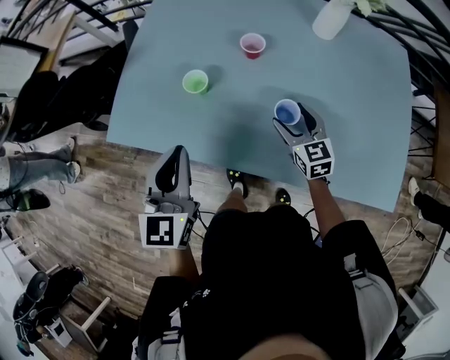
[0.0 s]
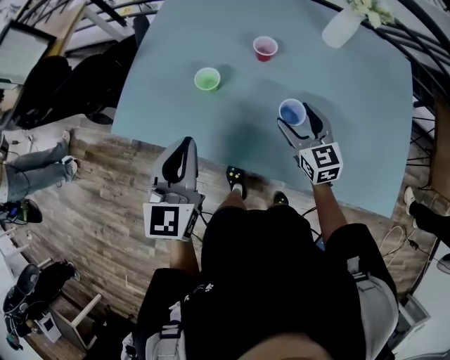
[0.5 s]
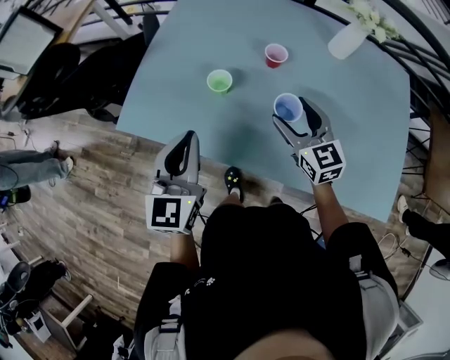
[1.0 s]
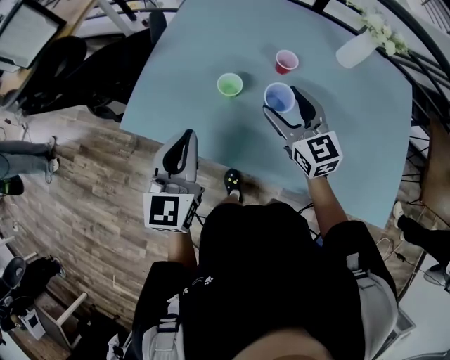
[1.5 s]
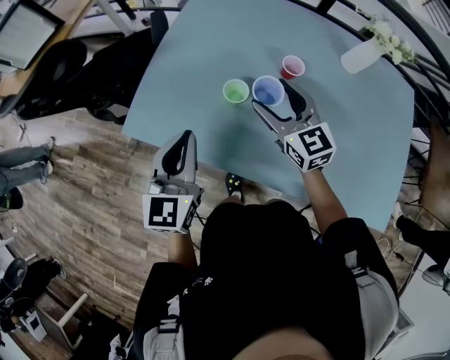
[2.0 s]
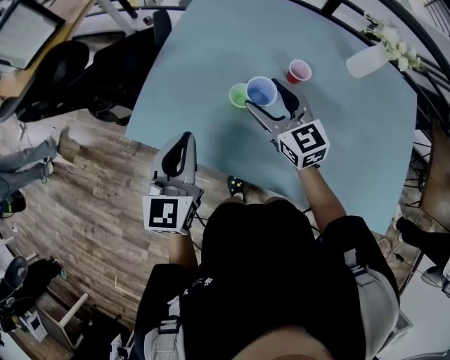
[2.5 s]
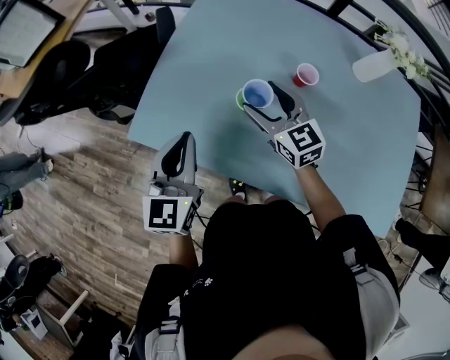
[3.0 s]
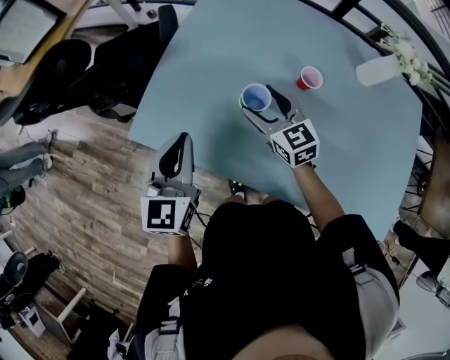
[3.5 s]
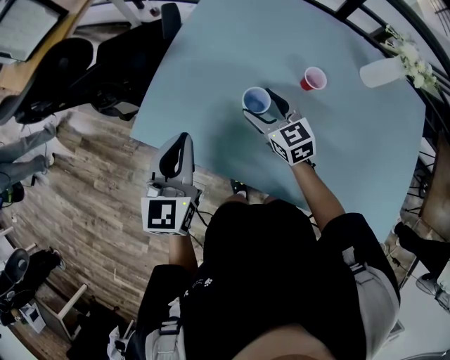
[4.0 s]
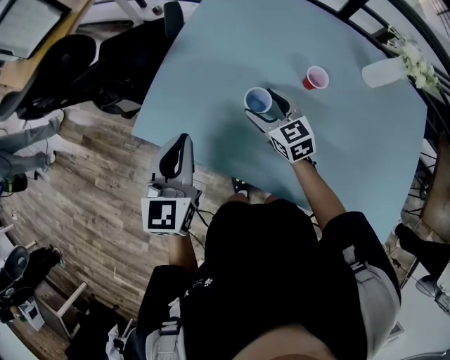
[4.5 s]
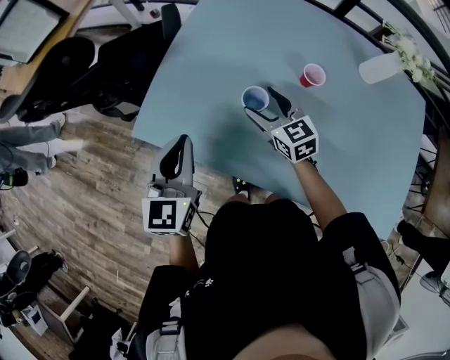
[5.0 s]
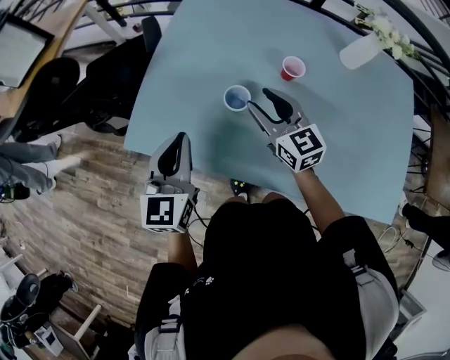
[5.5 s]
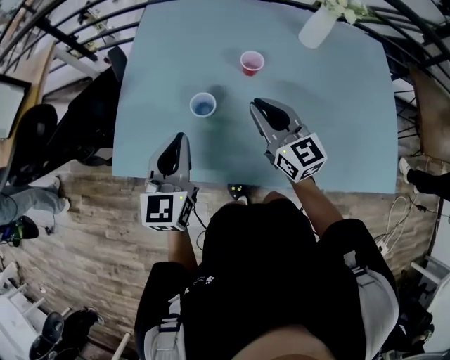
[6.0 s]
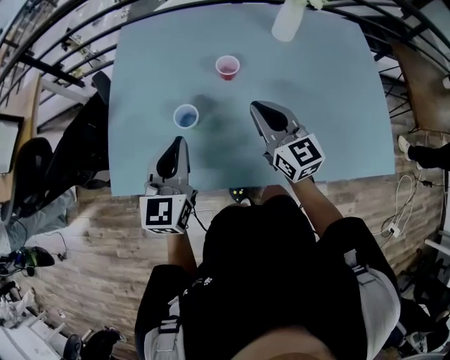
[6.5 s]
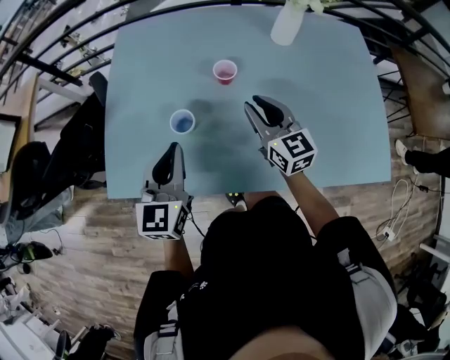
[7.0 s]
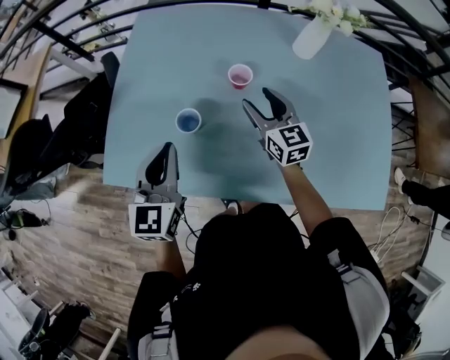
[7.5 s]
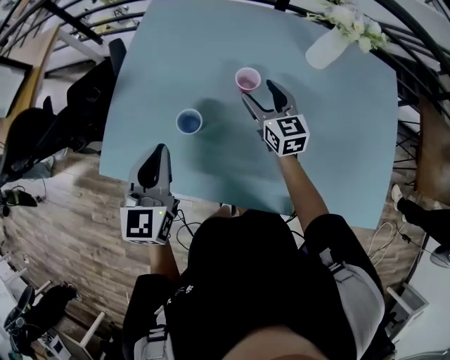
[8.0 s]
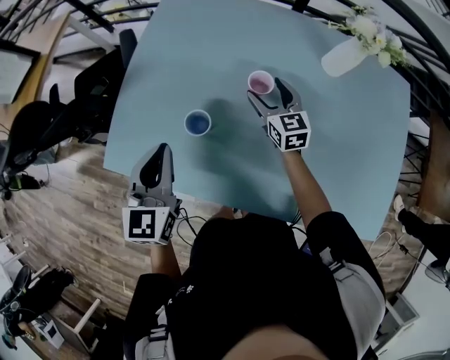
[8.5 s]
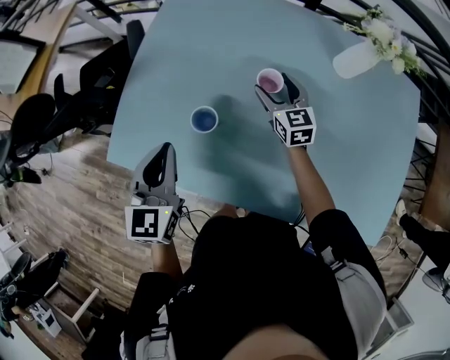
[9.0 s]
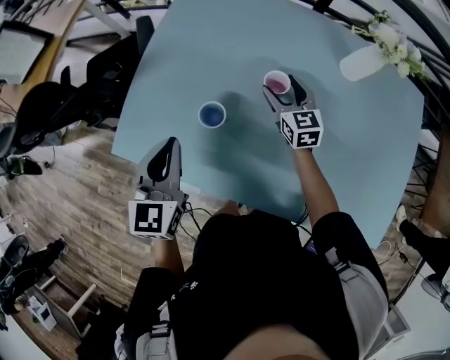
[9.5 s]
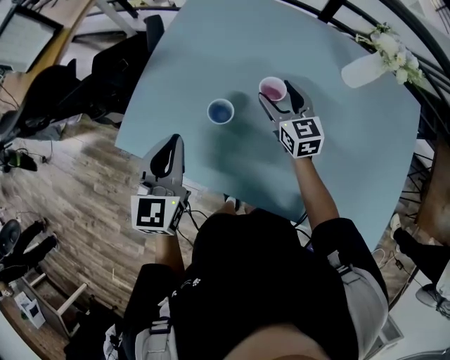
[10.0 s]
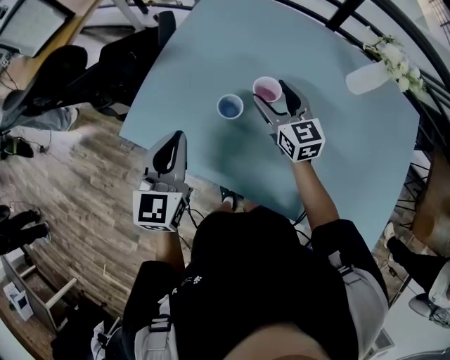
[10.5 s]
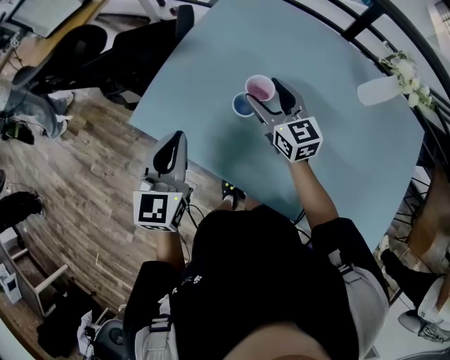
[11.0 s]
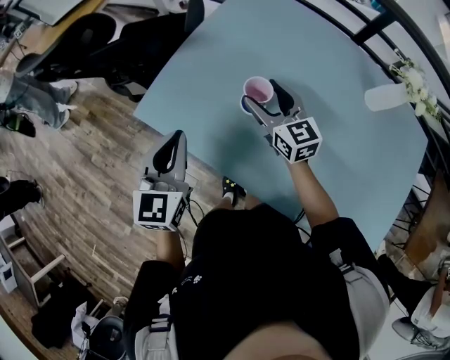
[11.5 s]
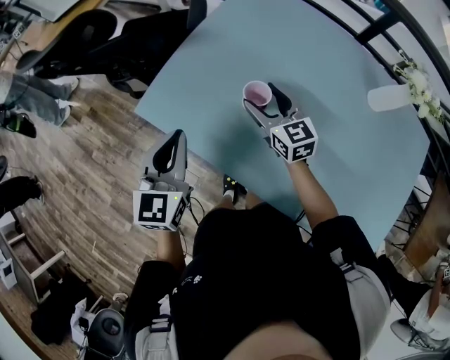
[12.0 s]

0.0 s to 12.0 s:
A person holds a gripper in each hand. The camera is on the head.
0.0 to 2.0 s: The right gripper shifts some 25 cm to the left, upward and forward; the left gripper goes some 10 cm to the left and forward.
2.0 to 4.0 s: The right gripper goes approximately 15 cm downward, to the left and forward; the left gripper goes some 5 cm forward.
4.0 to 6.0 s: The left gripper shifts roughly 10 cm to the right. The right gripper moves to the right, upward and backward, roughly 20 cm, rotates about 30 degrees, and closes up.
6.0 to 8.0 s: The right gripper goes about 15 cm forward, downward and to the right, and opens its fingers.
8.0 to 10.0 s: The right gripper is displaced to the left by approximately 5 cm.
10.0 to 12.0 s: The left gripper travels to the left by about 10 cm. The right gripper heads to the left, covering roughly 15 cm.

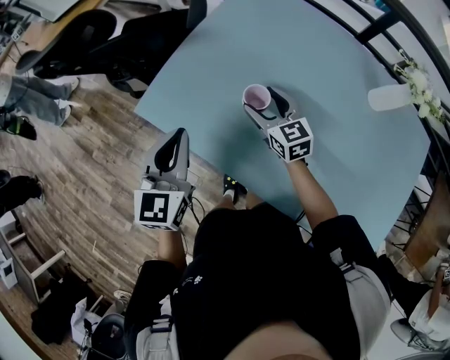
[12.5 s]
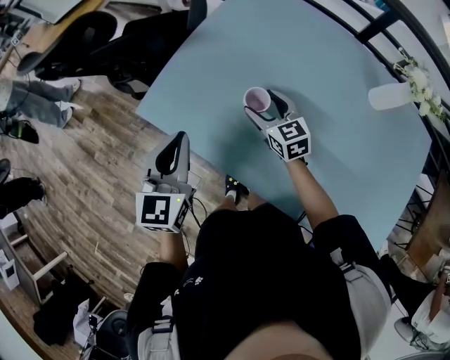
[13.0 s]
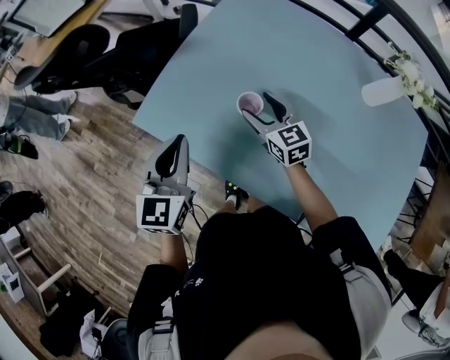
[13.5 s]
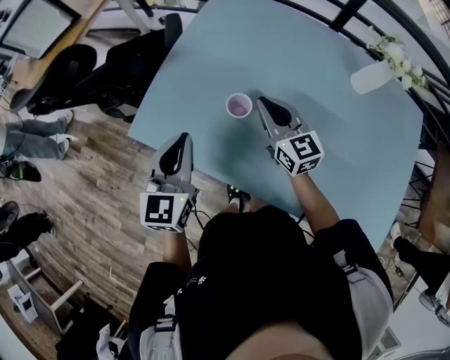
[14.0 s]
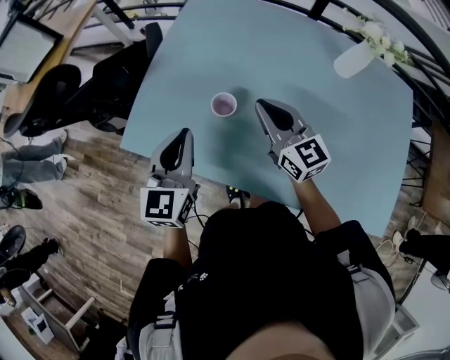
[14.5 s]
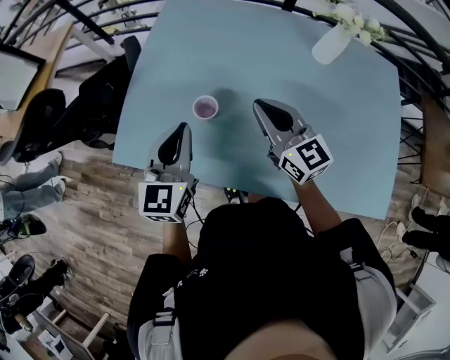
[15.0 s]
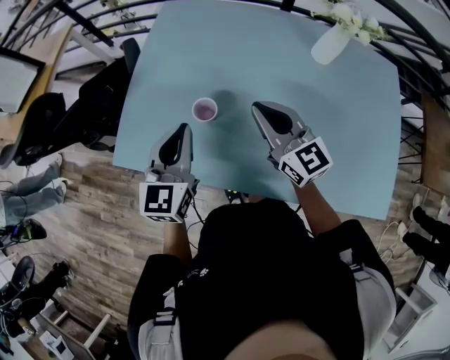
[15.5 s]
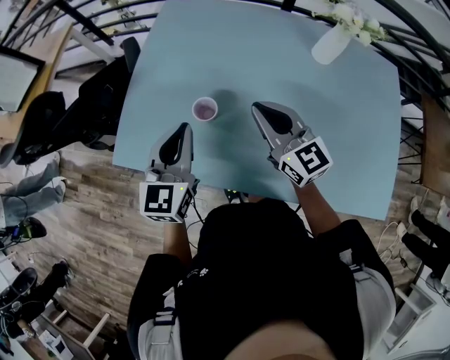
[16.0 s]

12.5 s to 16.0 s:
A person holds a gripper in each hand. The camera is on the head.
12.5 to 14.5 s: The right gripper shifts approximately 15 cm upward, to the right and backward, rotates roughly 20 degrees, and closes up, while the left gripper moves to the right, approximately 10 cm.
14.5 to 16.0 s: The right gripper moves roughly 5 cm. The left gripper moves to the right, about 5 cm.

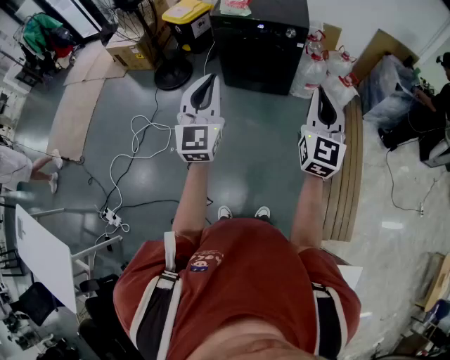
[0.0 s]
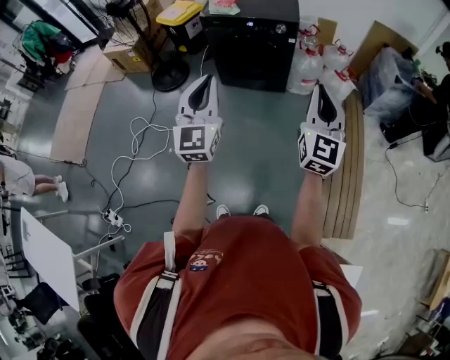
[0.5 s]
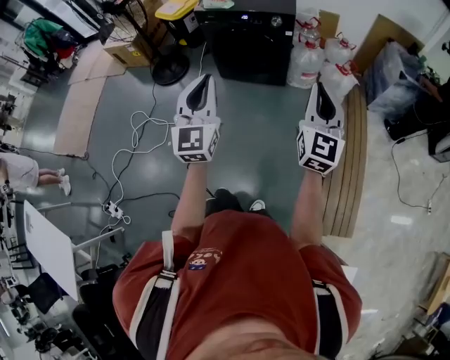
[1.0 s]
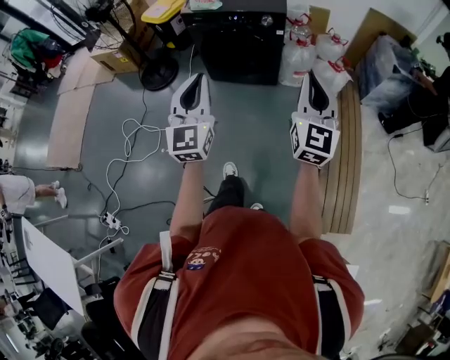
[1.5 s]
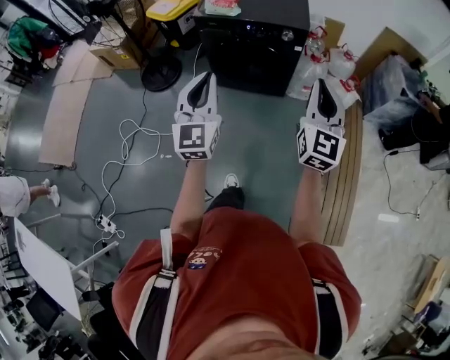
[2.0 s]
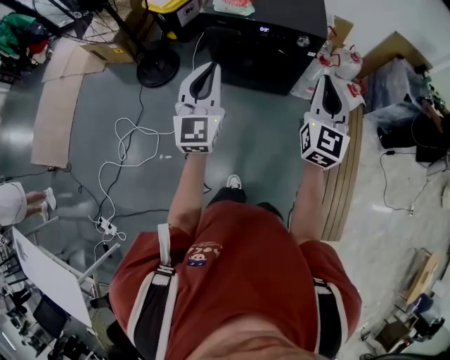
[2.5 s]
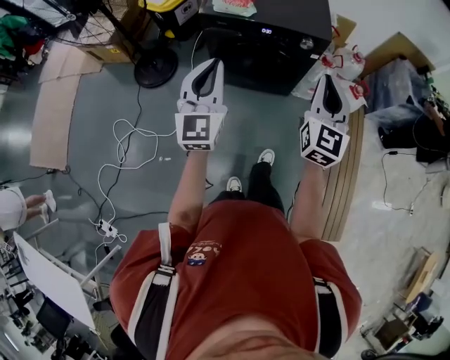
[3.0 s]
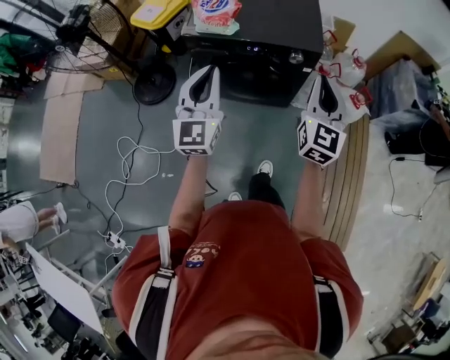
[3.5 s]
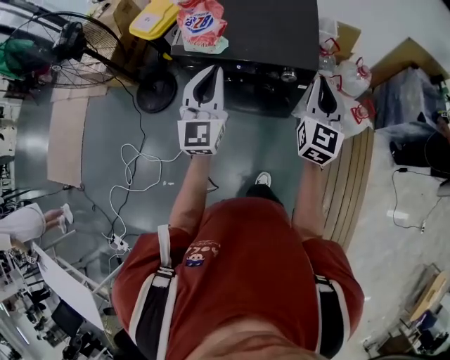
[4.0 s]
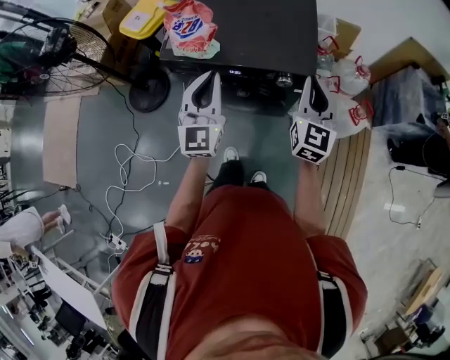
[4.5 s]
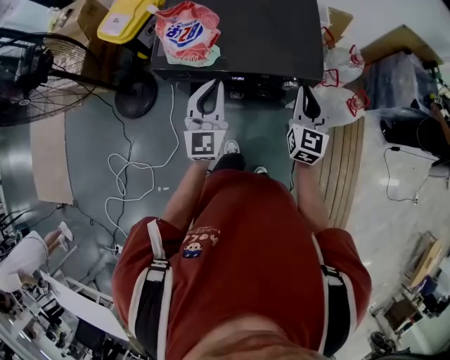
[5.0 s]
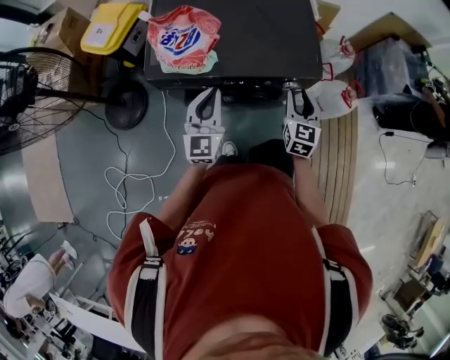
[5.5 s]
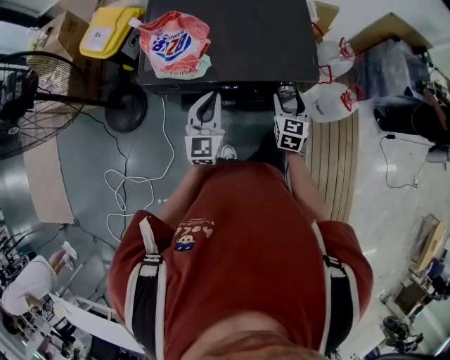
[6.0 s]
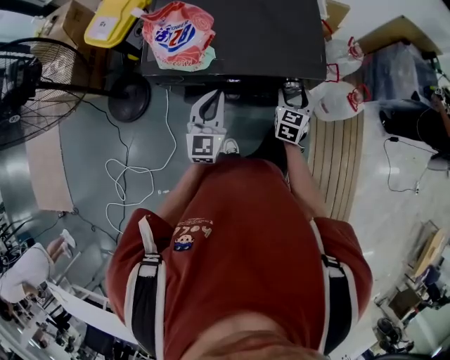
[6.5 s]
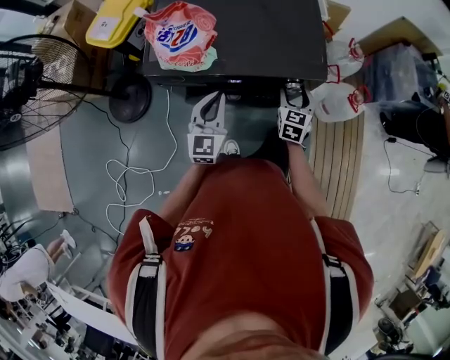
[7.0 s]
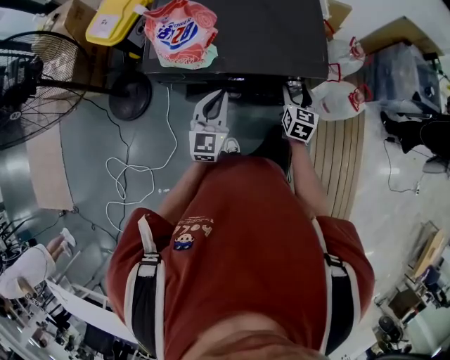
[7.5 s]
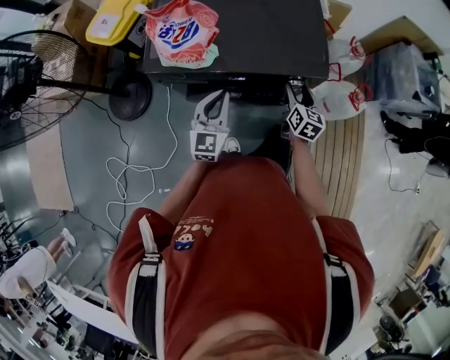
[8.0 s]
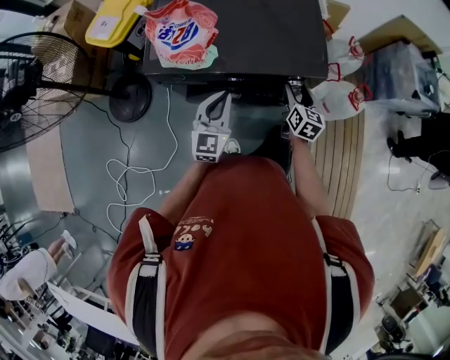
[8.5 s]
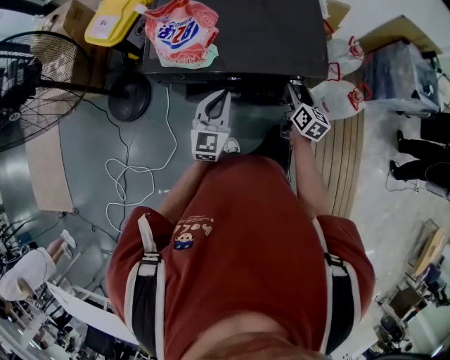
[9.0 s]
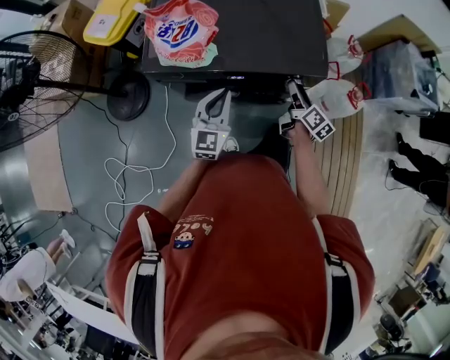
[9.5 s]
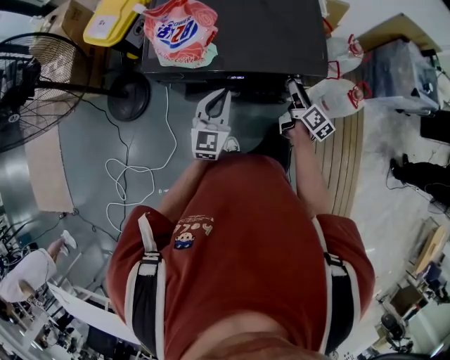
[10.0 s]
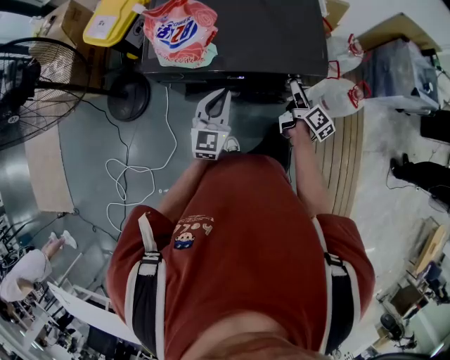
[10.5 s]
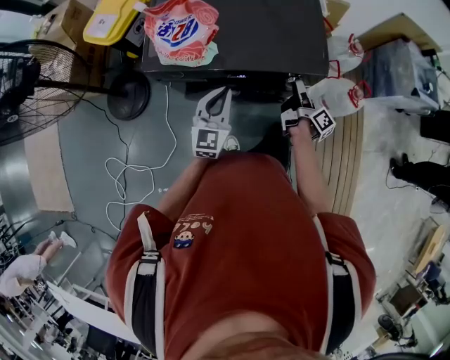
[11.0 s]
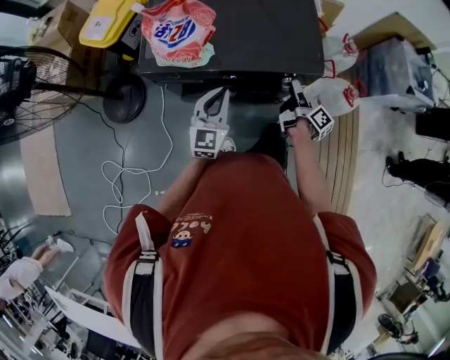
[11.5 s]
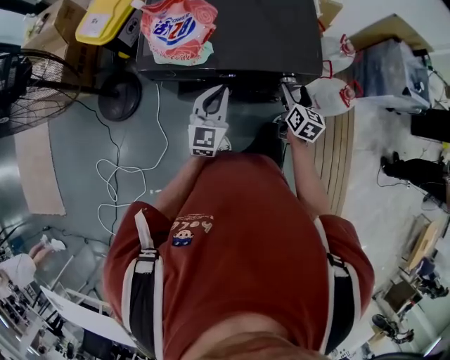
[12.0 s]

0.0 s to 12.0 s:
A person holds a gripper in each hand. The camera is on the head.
0.0 to 2.0 s: The grippers both shift forward by about 25 cm.
2.0 to 4.0 s: Both grippers are carried forward, roughly 40 cm.
4.0 to 6.0 s: The two grippers go some 30 cm downward and forward. The right gripper rotates about 30 degrees, and opens.
6.0 to 8.0 s: The right gripper swivels some 20 degrees.
8.0 to 10.0 s: The right gripper changes its angle by about 40 degrees.
10.0 to 12.0 s: The right gripper changes its angle by approximately 30 degrees.
